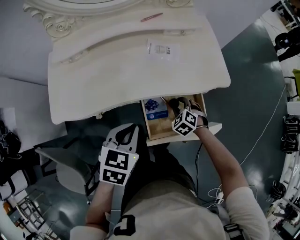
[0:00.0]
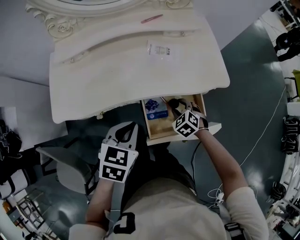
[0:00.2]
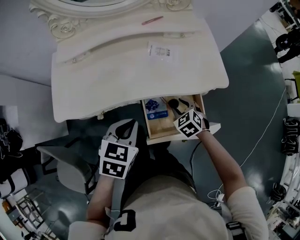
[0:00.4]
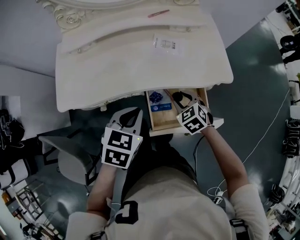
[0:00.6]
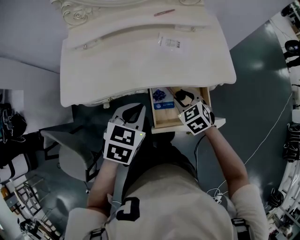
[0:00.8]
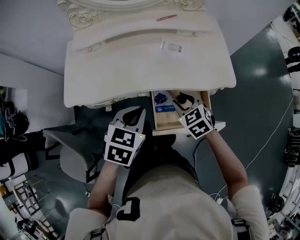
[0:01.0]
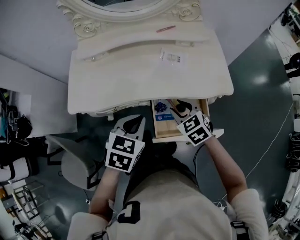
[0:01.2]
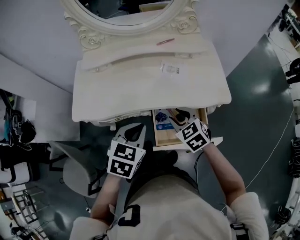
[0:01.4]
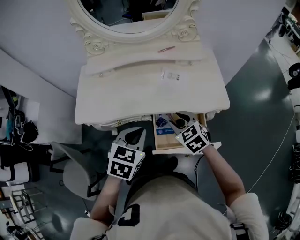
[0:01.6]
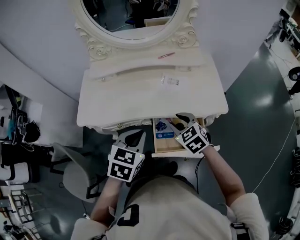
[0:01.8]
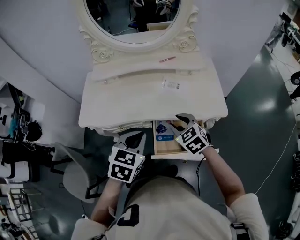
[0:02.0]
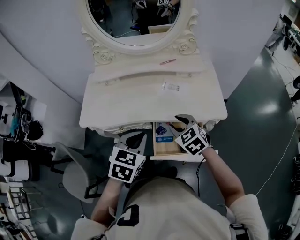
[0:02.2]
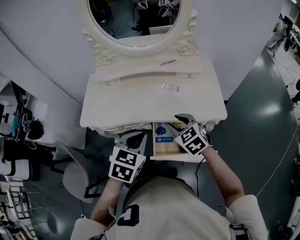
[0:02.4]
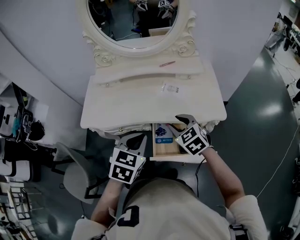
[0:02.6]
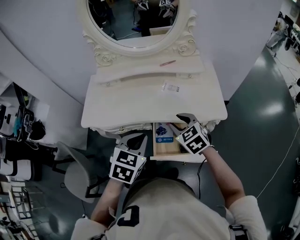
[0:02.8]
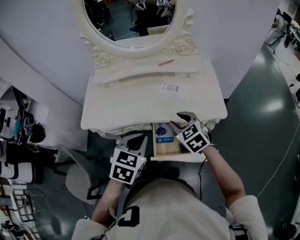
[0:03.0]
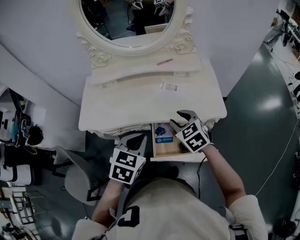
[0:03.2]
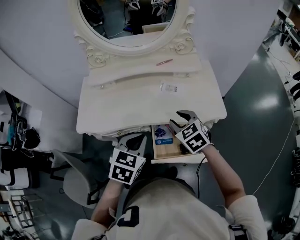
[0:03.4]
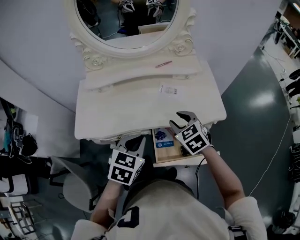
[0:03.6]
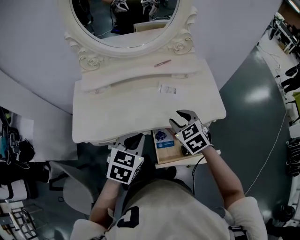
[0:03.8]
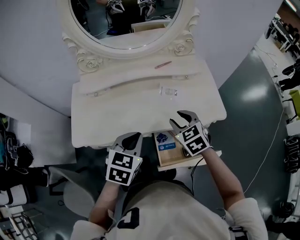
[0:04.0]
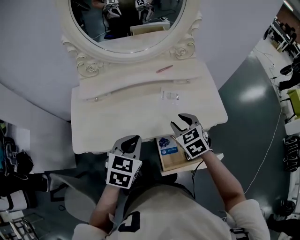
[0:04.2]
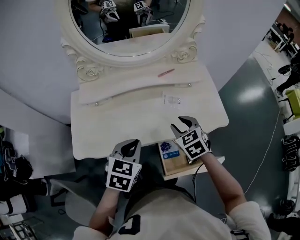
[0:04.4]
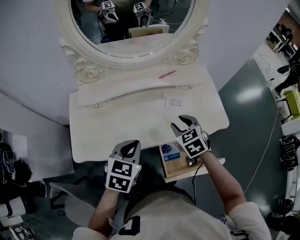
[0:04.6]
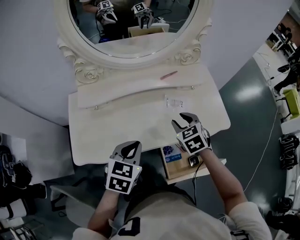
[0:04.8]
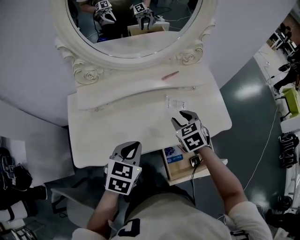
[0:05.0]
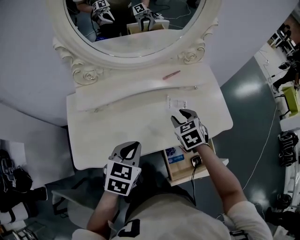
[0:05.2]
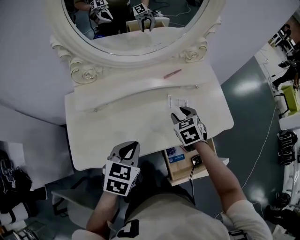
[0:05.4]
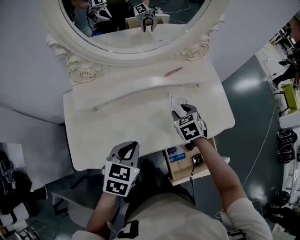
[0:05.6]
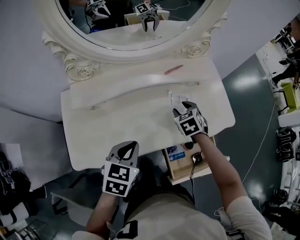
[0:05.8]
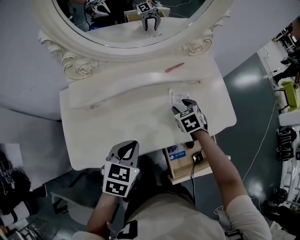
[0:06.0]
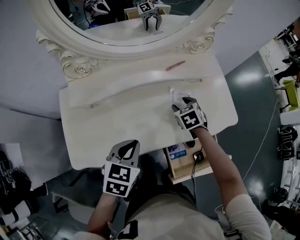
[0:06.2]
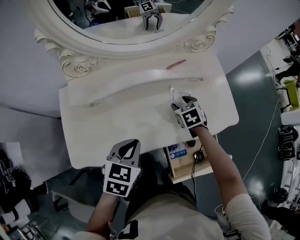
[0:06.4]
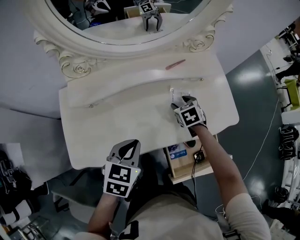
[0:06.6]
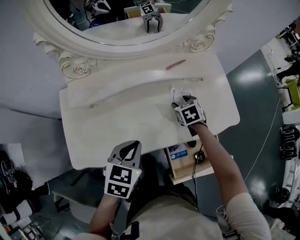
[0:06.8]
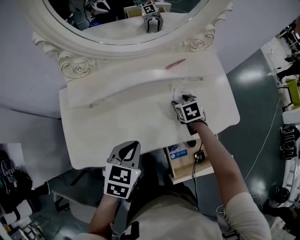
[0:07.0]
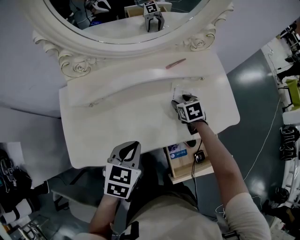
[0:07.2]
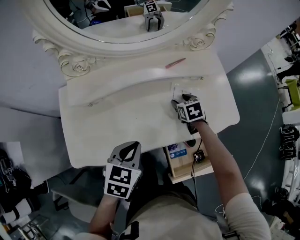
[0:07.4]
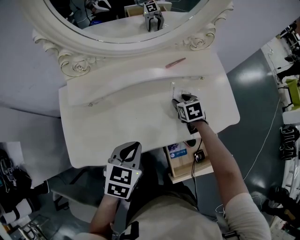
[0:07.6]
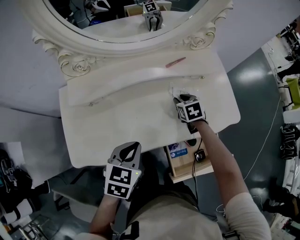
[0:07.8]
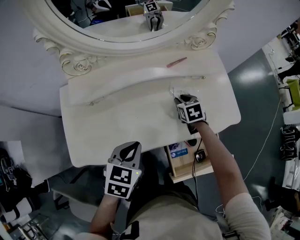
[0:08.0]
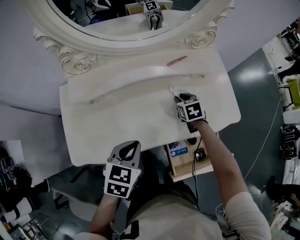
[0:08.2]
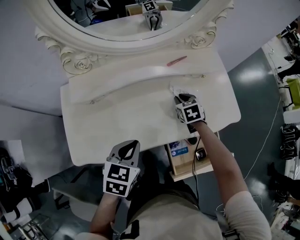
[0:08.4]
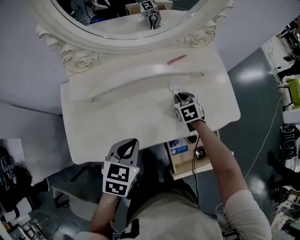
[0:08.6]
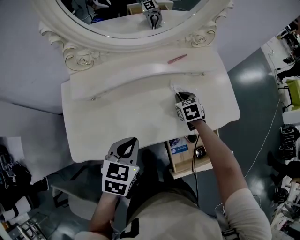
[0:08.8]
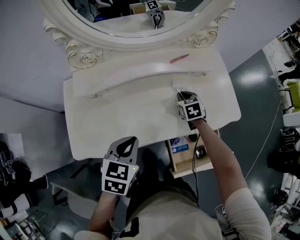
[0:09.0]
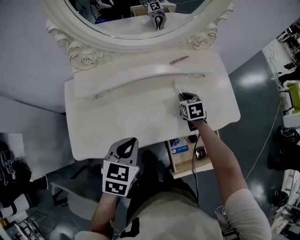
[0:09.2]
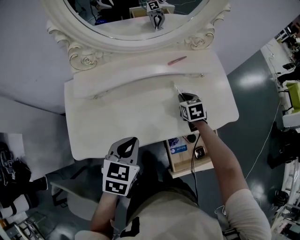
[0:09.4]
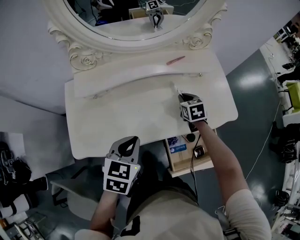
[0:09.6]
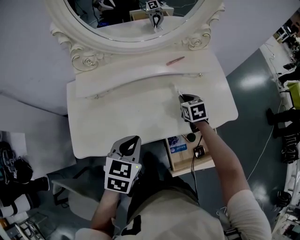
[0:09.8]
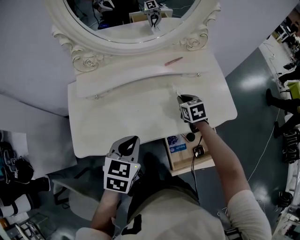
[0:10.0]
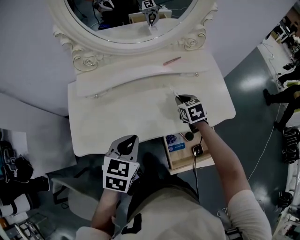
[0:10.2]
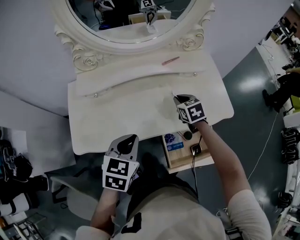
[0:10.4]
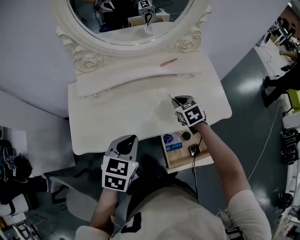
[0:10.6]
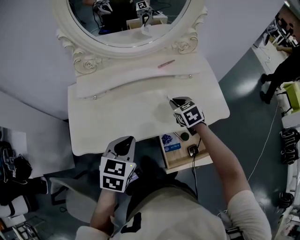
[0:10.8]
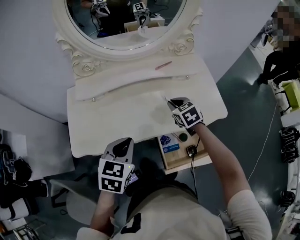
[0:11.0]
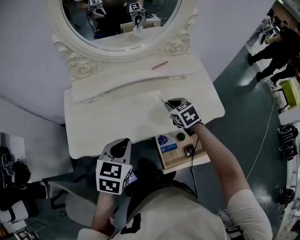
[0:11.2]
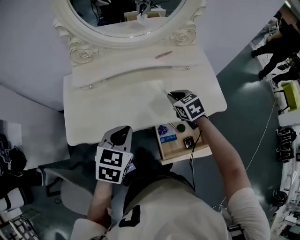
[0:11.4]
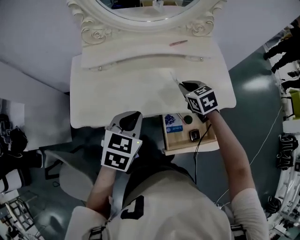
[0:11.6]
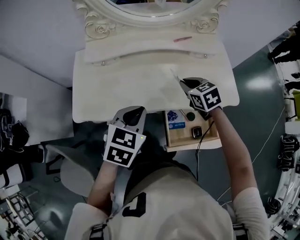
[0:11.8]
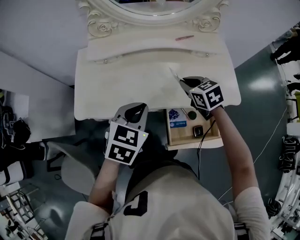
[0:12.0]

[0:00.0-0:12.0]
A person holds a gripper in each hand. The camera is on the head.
0:00.0 to 0:01.6: The right gripper moves upward, some 20 cm, and swivels some 30 degrees; the left gripper travels upward by roughly 5 cm.
0:01.6 to 0:03.0: The right gripper goes some 5 cm upward.
0:03.0 to 0:04.4: Both grippers travel together forward and to the left, about 15 cm.
0:04.4 to 0:06.0: The left gripper shifts approximately 10 cm to the left and forward; the right gripper moves forward and downward, about 15 cm.
0:06.0 to 0:07.6: The grippers make only small movements.
0:07.6 to 0:09.0: The right gripper closes.
0:09.0 to 0:10.4: The right gripper is displaced upward and backward by about 10 cm. Meanwhile the left gripper shifts by roughly 5 cm.
0:10.4 to 0:12.0: The right gripper moves backward and upward, some 10 cm.

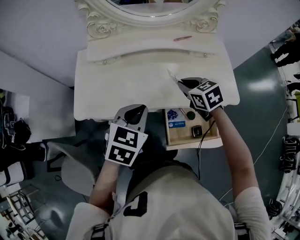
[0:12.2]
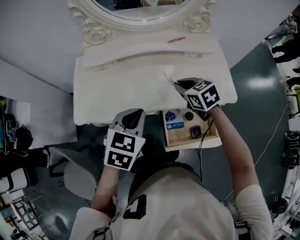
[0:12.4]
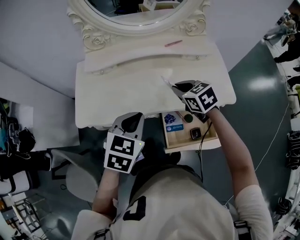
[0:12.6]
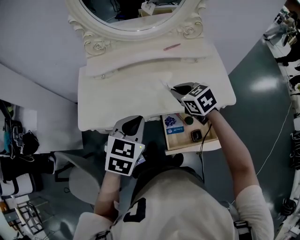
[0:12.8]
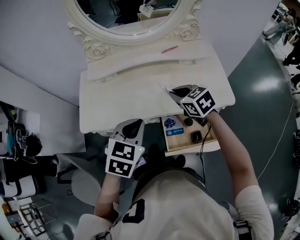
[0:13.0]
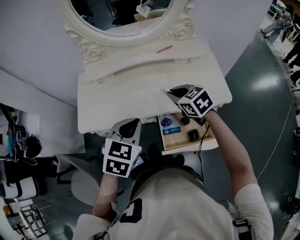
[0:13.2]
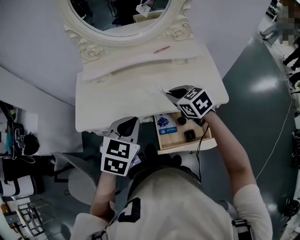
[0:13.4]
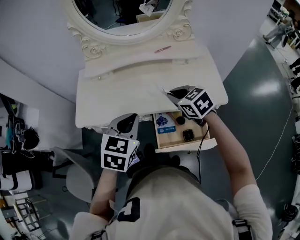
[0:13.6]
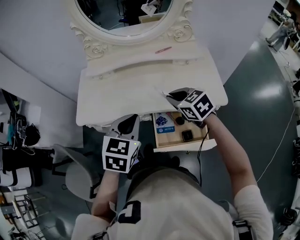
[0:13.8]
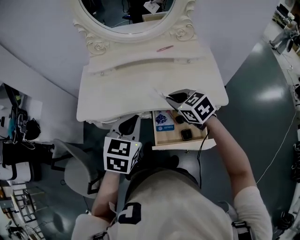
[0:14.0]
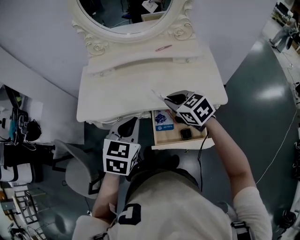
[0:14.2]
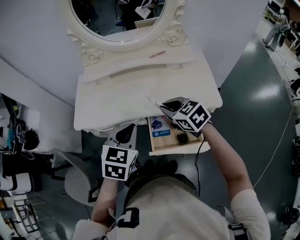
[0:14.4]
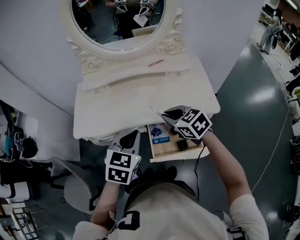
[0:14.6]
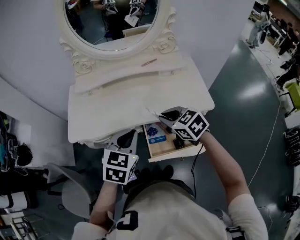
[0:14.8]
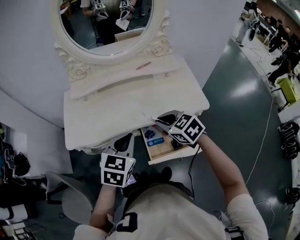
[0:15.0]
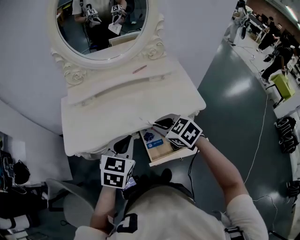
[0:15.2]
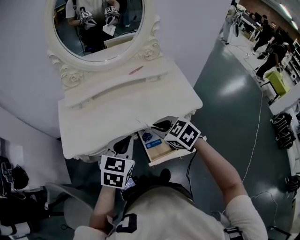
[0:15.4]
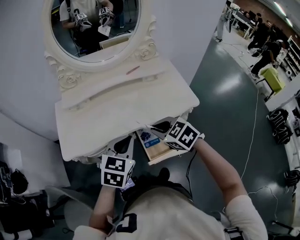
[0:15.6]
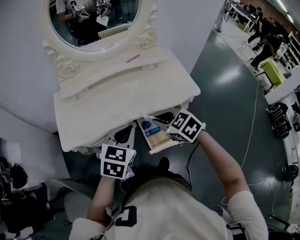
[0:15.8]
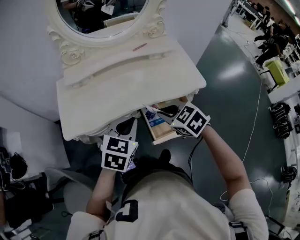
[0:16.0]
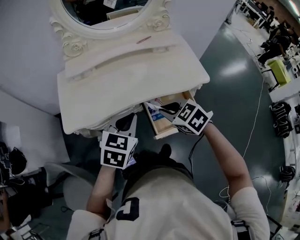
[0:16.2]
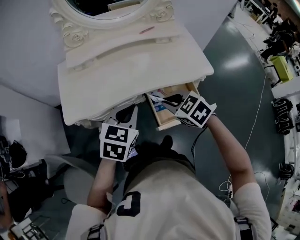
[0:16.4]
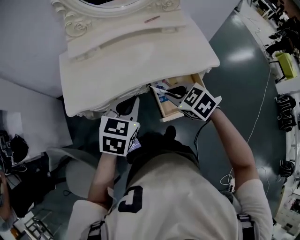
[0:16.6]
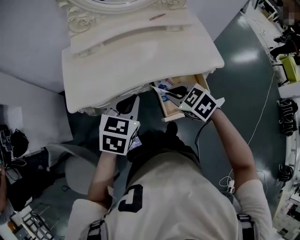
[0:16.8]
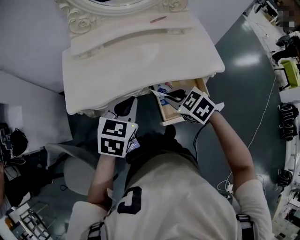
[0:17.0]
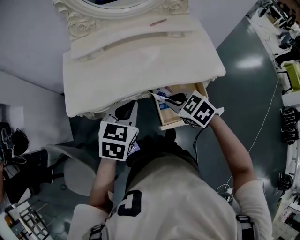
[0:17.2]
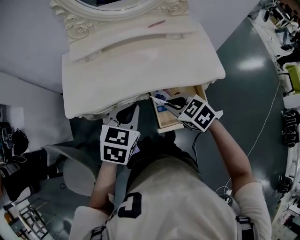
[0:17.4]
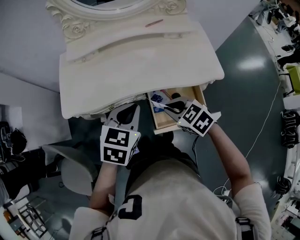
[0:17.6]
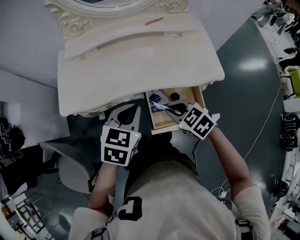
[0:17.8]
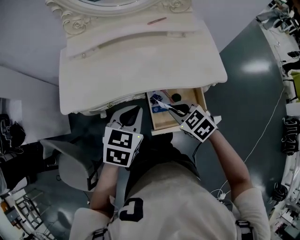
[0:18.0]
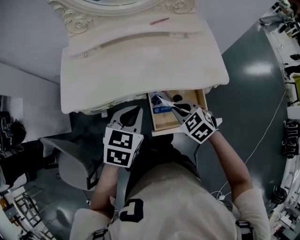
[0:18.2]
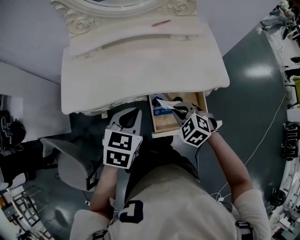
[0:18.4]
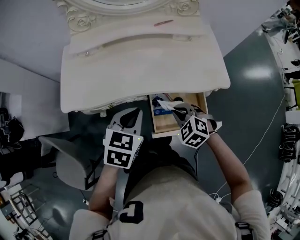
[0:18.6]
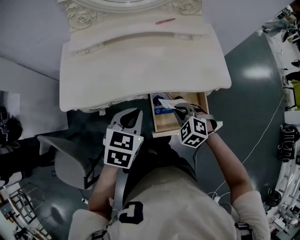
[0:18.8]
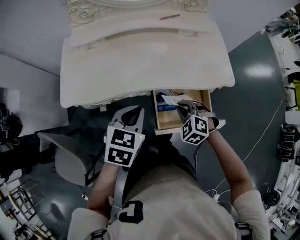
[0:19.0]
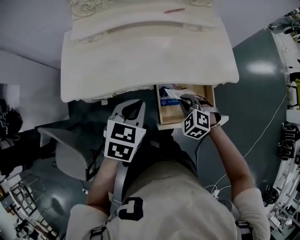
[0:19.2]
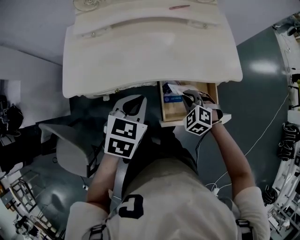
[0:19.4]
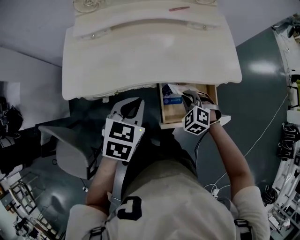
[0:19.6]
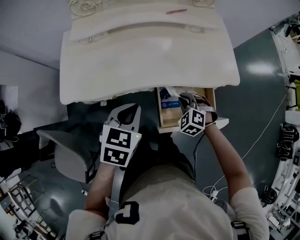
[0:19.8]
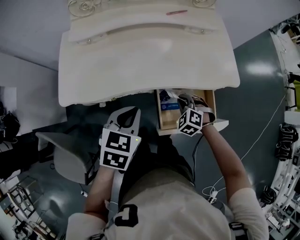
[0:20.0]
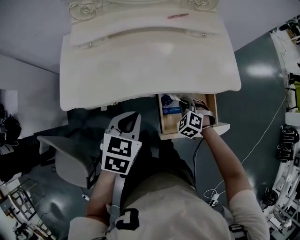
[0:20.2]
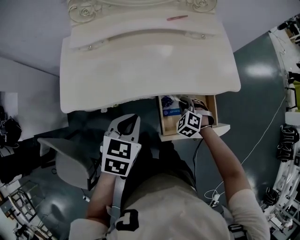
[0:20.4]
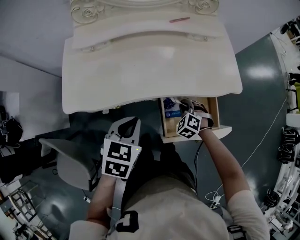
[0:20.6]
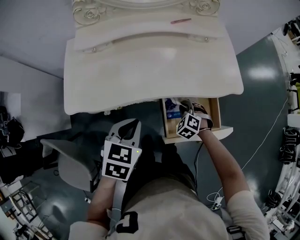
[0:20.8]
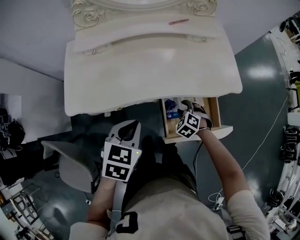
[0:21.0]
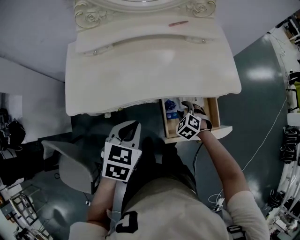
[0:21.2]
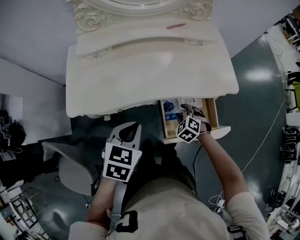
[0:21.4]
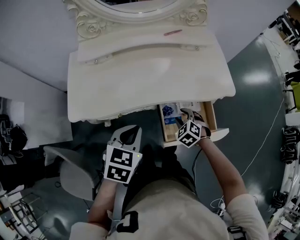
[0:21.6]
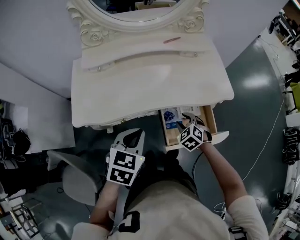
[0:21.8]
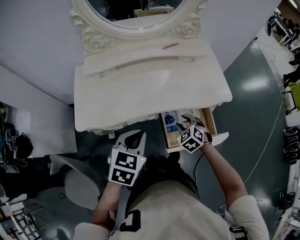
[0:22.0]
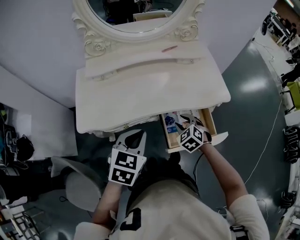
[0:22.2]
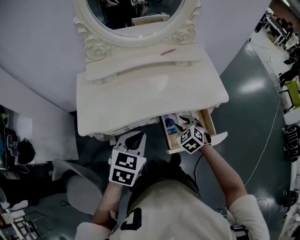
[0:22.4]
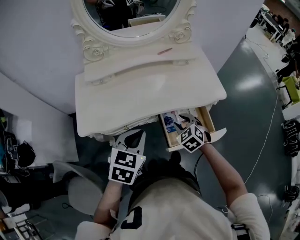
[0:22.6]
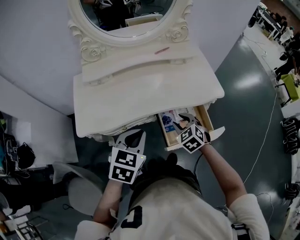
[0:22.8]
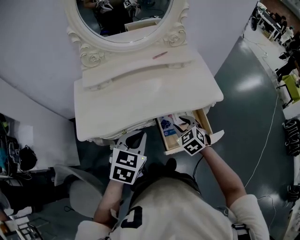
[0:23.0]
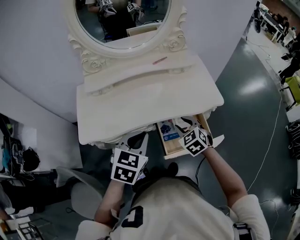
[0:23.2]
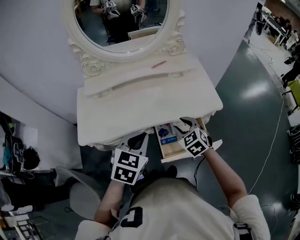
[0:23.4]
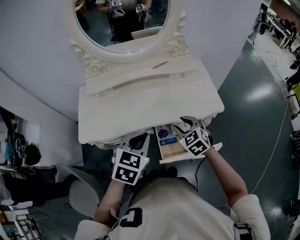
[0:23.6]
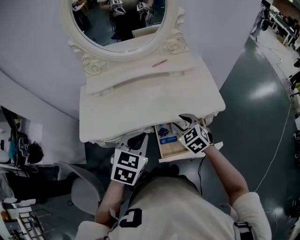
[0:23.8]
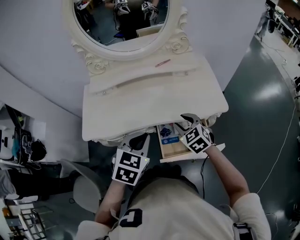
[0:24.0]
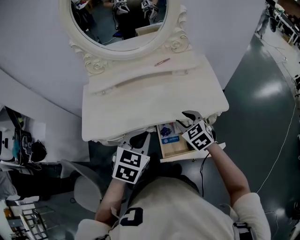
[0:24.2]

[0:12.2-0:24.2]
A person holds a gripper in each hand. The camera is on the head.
0:12.2 to 0:13.8: The right gripper shifts roughly 10 cm backward, while the left gripper travels backward and to the right by roughly 10 cm.
0:13.8 to 0:15.2: The right gripper goes some 5 cm backward.
0:15.2 to 0:16.6: The grippers both shift to the left by roughly 5 cm.
0:16.6 to 0:18.2: The right gripper is displaced to the right and downward by about 10 cm; the left gripper heads to the right, covering roughly 10 cm.
0:18.2 to 0:19.8: The right gripper is displaced downward by some 10 cm, and swivels approximately 30 degrees. Meanwhile the left gripper travels to the left by roughly 5 cm.
0:19.8 to 0:21.2: The right gripper moves downward, some 5 cm, and opens.
0:21.2 to 0:22.6: The right gripper moves upward, some 15 cm, and changes its angle by roughly 20 degrees, while the left gripper travels upward by roughly 5 cm.
0:22.6 to 0:24.2: The right gripper goes about 10 cm to the right, upward and forward. Meanwhile the left gripper moves to the right, roughly 10 cm.
